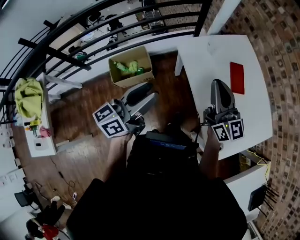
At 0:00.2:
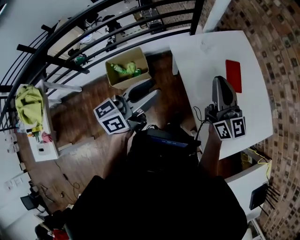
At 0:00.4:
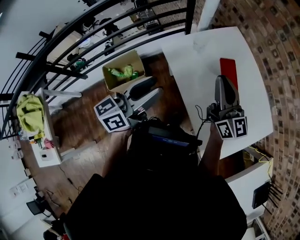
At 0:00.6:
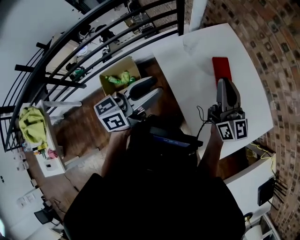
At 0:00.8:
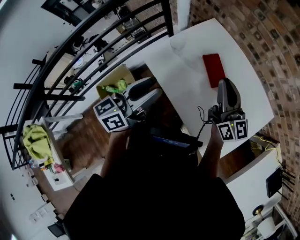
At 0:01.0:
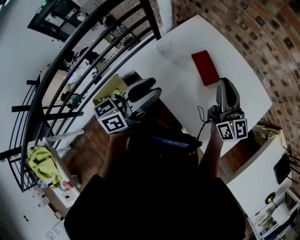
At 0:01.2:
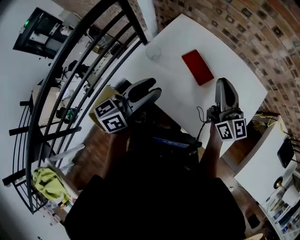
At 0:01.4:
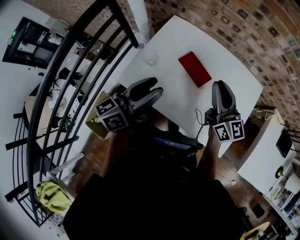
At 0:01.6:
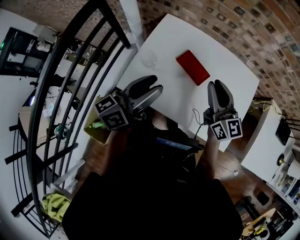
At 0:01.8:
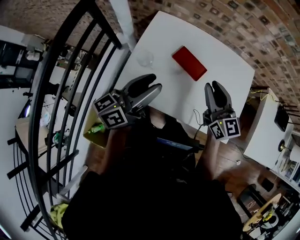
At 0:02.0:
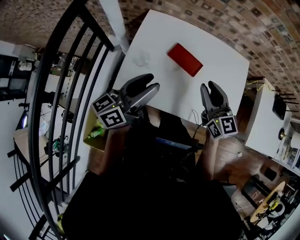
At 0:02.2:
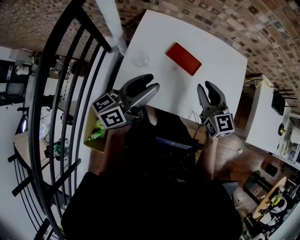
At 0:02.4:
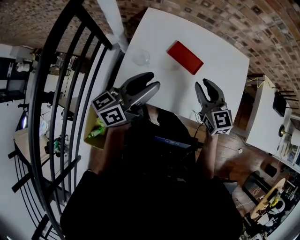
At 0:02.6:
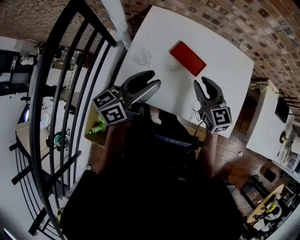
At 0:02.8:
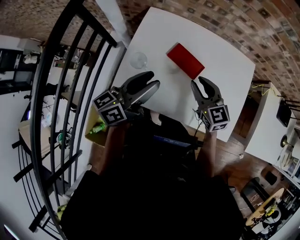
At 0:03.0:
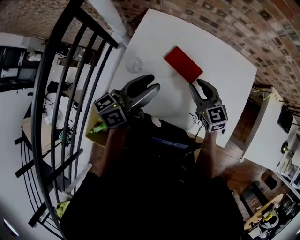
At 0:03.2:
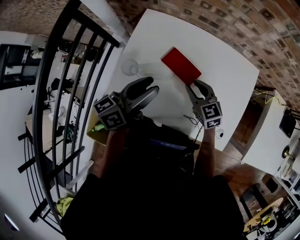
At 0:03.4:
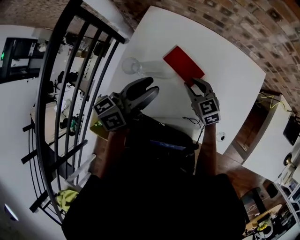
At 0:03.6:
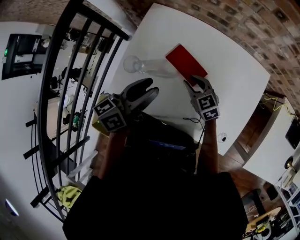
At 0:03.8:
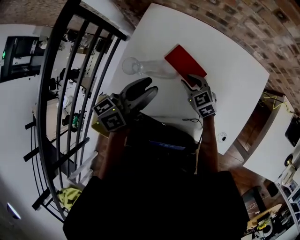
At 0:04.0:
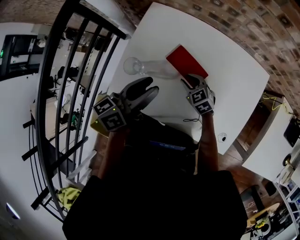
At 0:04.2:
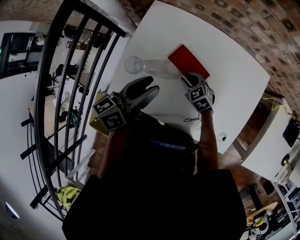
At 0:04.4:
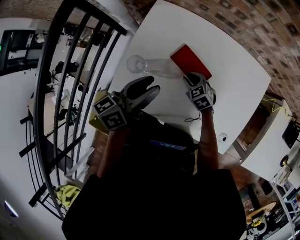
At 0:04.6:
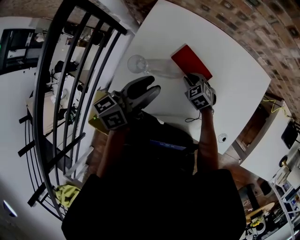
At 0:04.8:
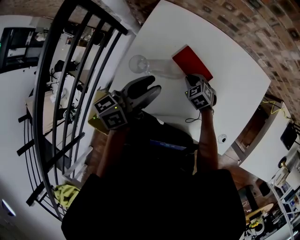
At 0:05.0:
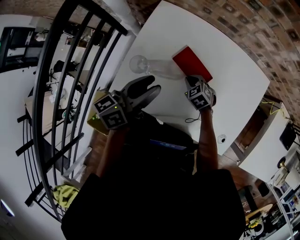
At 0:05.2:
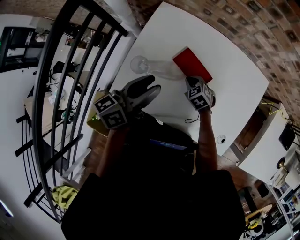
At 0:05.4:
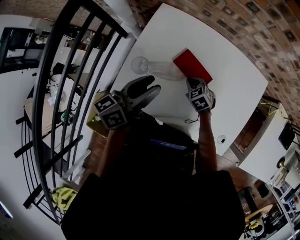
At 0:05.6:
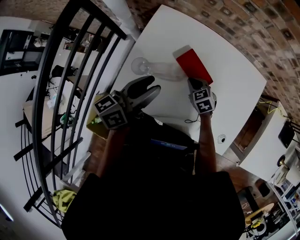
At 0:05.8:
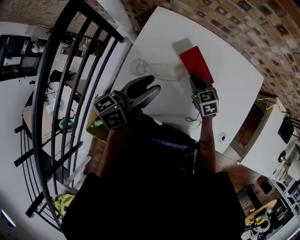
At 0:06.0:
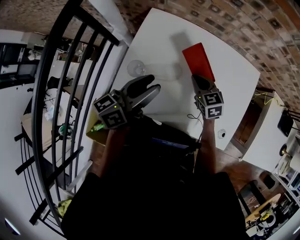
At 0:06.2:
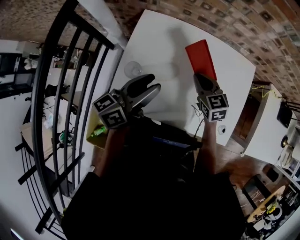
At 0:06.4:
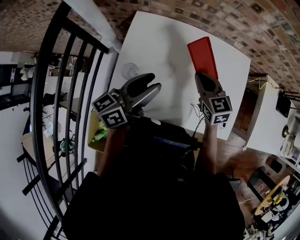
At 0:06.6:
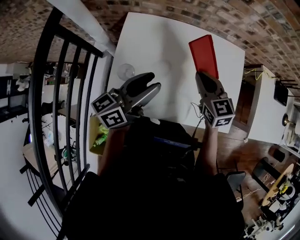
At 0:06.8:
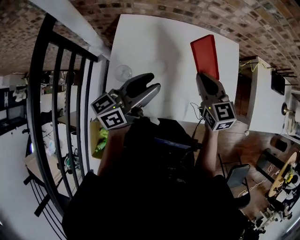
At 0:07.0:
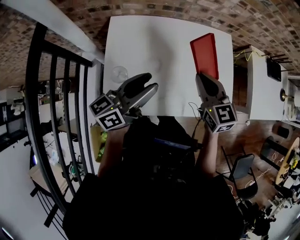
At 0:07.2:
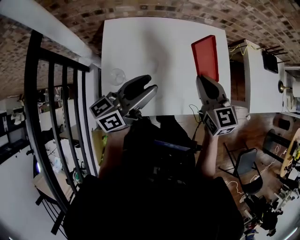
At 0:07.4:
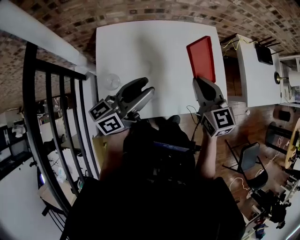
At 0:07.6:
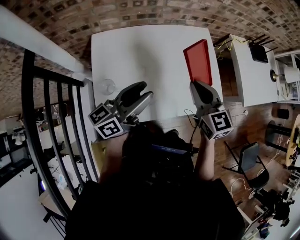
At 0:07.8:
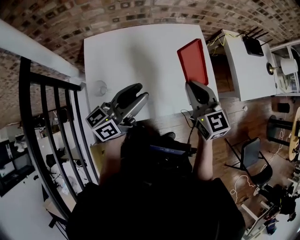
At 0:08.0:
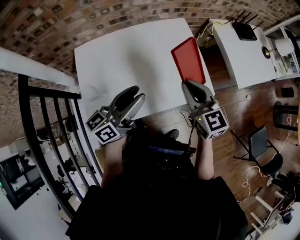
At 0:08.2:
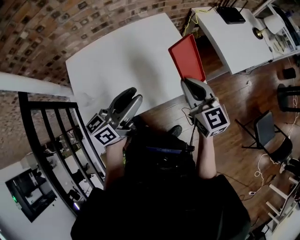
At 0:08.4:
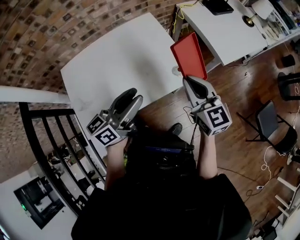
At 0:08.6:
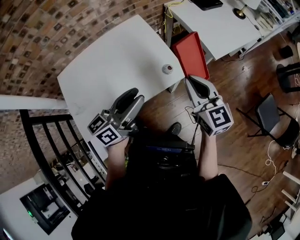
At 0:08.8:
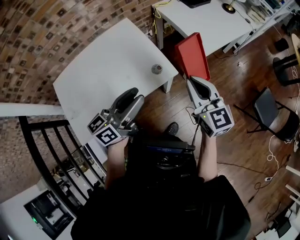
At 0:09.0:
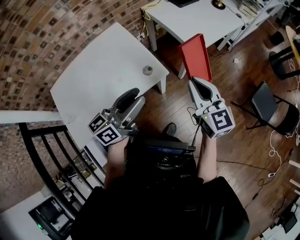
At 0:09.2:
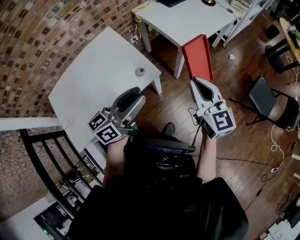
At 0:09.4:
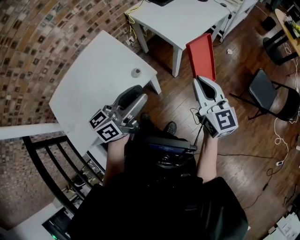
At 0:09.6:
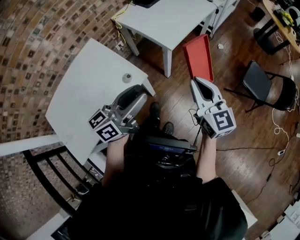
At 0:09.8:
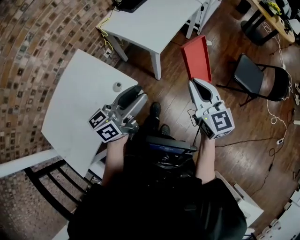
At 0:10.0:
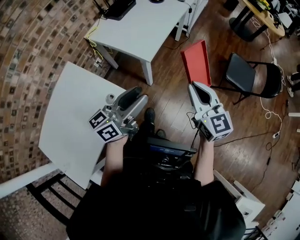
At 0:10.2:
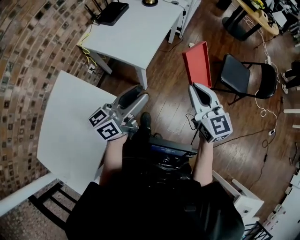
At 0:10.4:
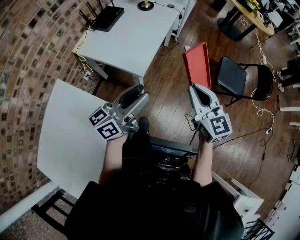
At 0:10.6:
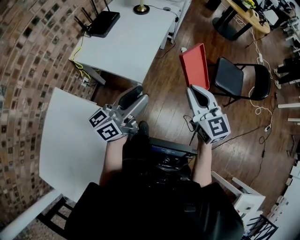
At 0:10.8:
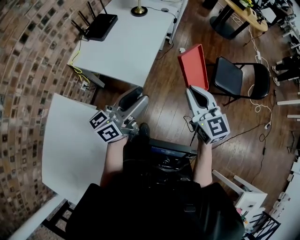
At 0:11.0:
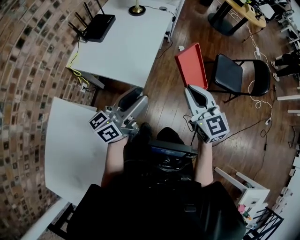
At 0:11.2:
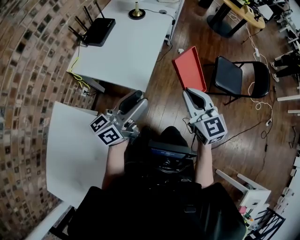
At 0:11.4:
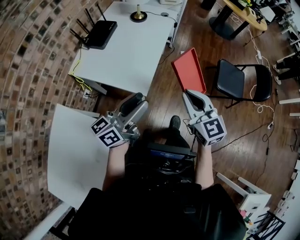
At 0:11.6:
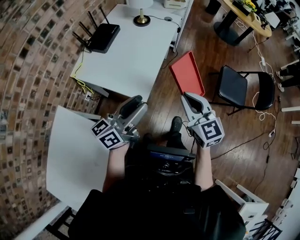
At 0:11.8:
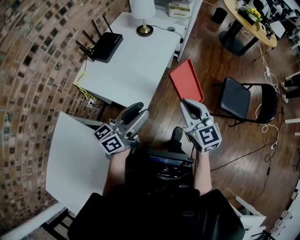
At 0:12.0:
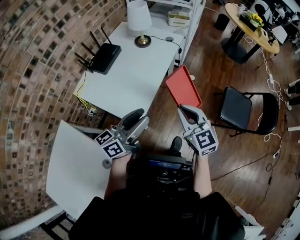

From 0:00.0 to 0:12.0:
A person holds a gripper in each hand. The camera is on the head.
From 0:00.0 to 0:01.6: The right gripper changes place by roughly 25 cm, and turns by roughly 40 degrees. Meanwhile the left gripper shifts by roughly 35 cm, and turns by approximately 50 degrees.
From 0:01.6 to 0:03.0: The left gripper moves forward and downward, approximately 10 cm. Meanwhile the right gripper goes some 15 cm downward, and swivels approximately 30 degrees.
From 0:03.0 to 0:04.4: The left gripper moves downward, some 5 cm. Meanwhile the right gripper is displaced downward by approximately 20 cm, and swivels some 30 degrees.
From 0:04.4 to 0:06.0: The right gripper heads upward, covering roughly 10 cm, swivels about 20 degrees, and closes its fingers.
From 0:06.0 to 0:07.6: The left gripper changes place by approximately 10 cm, and turns by some 30 degrees, while the right gripper moves upward, roughly 20 cm, and swivels approximately 40 degrees.
From 0:07.6 to 0:09.0: The pair of grippers is taken approximately 50 cm. The right gripper turns by roughly 30 degrees. The left gripper changes its angle by about 20 degrees.
From 0:09.0 to 0:10.4: The right gripper ends up about 25 cm from where it was, and changes its angle by about 30 degrees, while the left gripper shifts by roughly 35 cm, and turns by roughly 30 degrees.
From 0:10.4 to 0:12.0: Both grippers move forward, some 20 cm.

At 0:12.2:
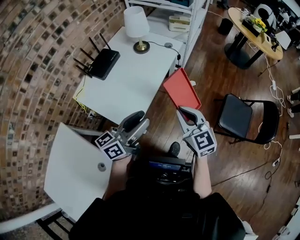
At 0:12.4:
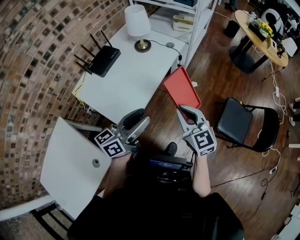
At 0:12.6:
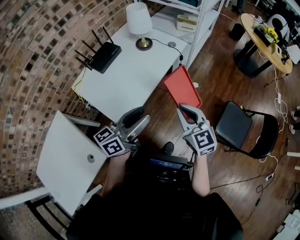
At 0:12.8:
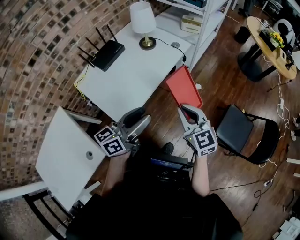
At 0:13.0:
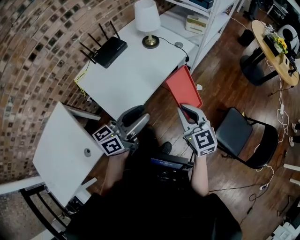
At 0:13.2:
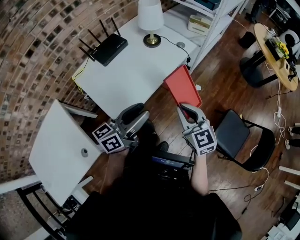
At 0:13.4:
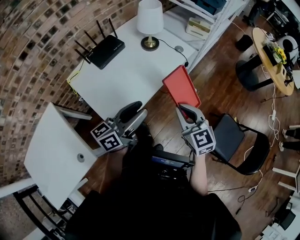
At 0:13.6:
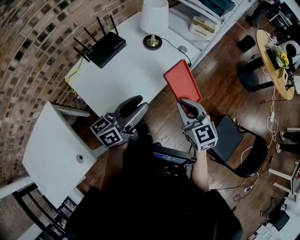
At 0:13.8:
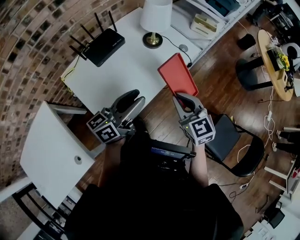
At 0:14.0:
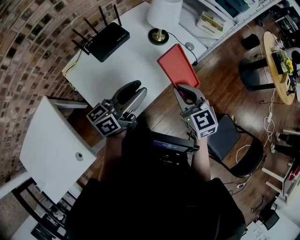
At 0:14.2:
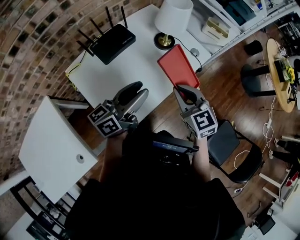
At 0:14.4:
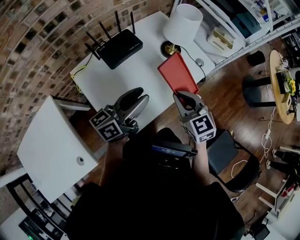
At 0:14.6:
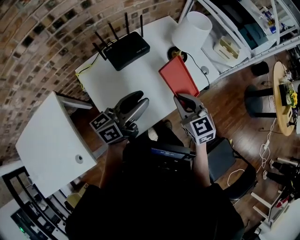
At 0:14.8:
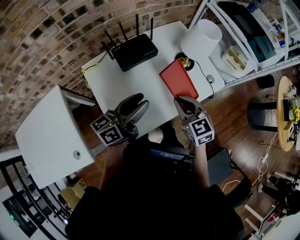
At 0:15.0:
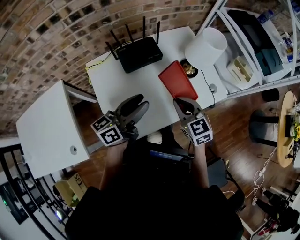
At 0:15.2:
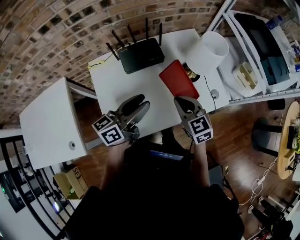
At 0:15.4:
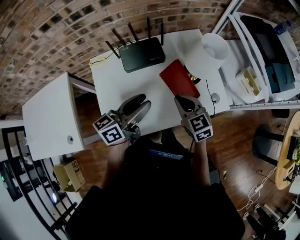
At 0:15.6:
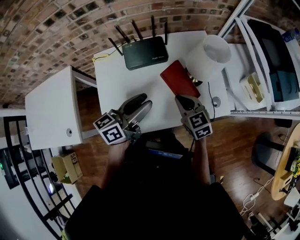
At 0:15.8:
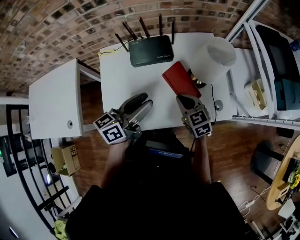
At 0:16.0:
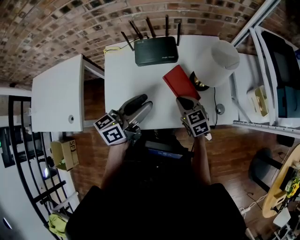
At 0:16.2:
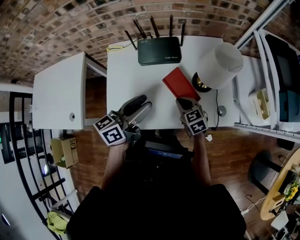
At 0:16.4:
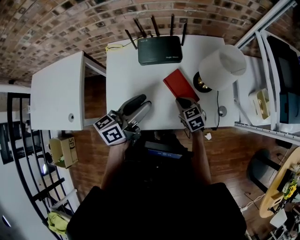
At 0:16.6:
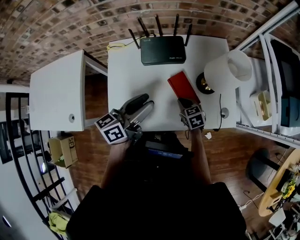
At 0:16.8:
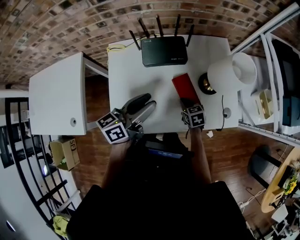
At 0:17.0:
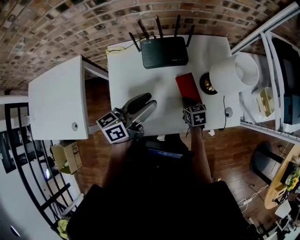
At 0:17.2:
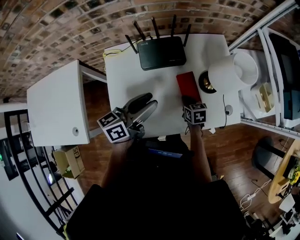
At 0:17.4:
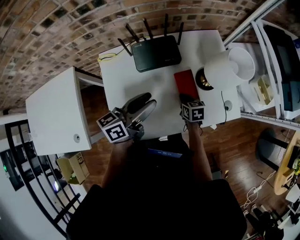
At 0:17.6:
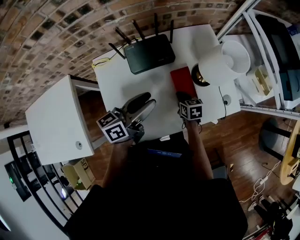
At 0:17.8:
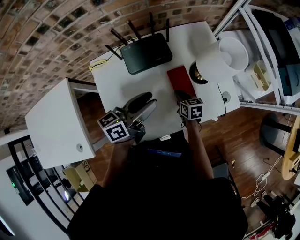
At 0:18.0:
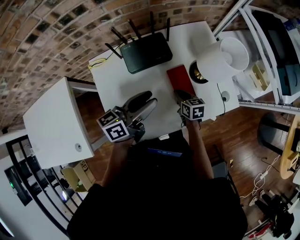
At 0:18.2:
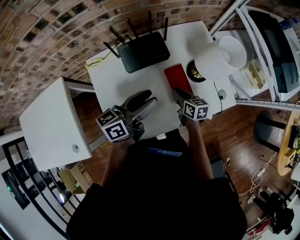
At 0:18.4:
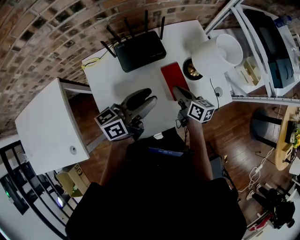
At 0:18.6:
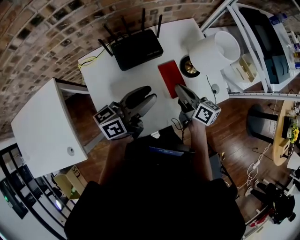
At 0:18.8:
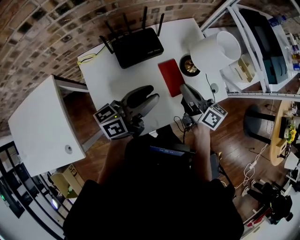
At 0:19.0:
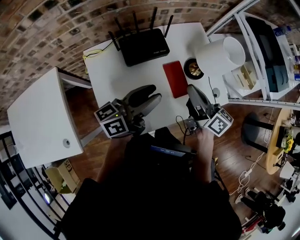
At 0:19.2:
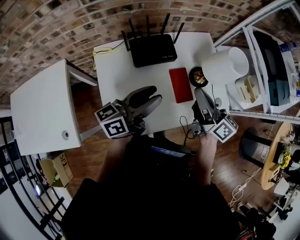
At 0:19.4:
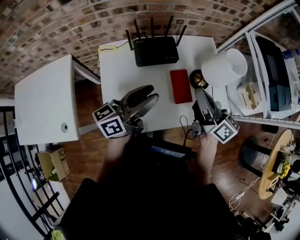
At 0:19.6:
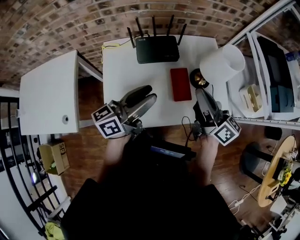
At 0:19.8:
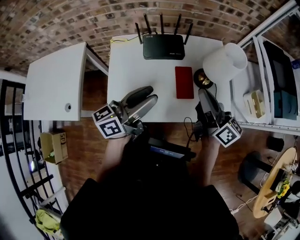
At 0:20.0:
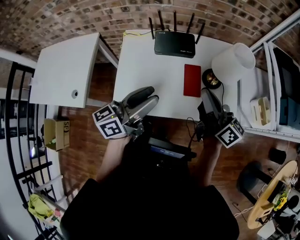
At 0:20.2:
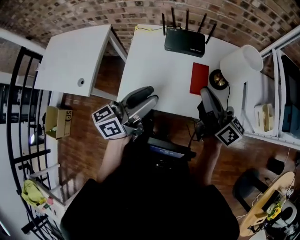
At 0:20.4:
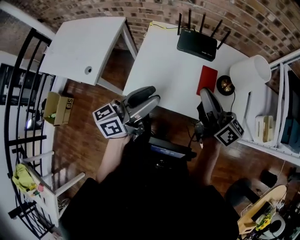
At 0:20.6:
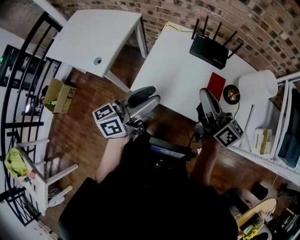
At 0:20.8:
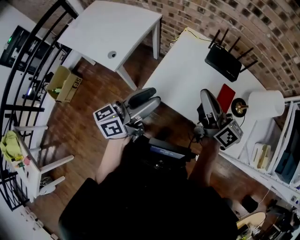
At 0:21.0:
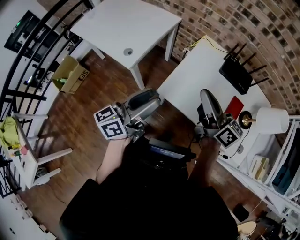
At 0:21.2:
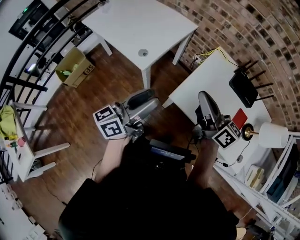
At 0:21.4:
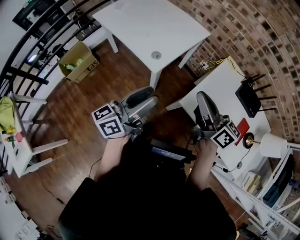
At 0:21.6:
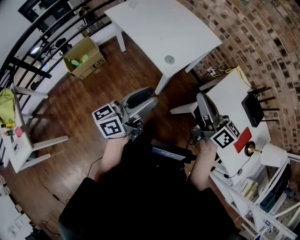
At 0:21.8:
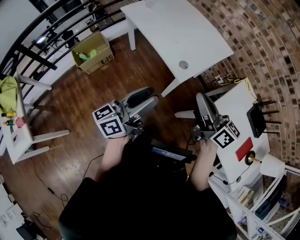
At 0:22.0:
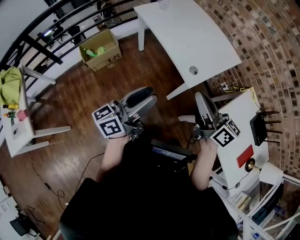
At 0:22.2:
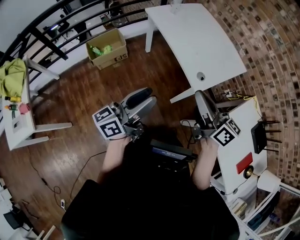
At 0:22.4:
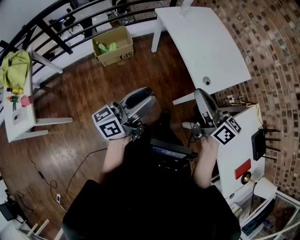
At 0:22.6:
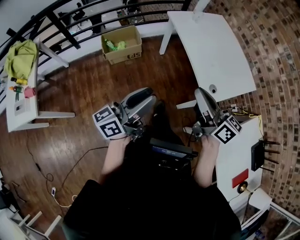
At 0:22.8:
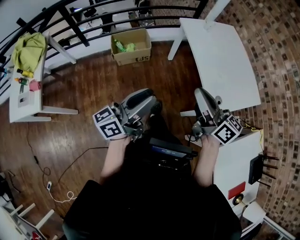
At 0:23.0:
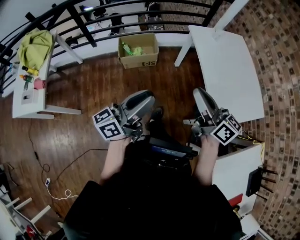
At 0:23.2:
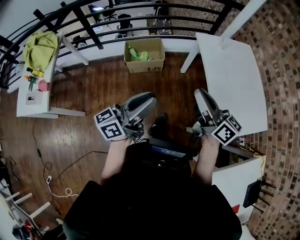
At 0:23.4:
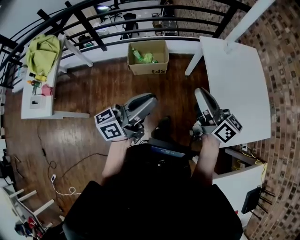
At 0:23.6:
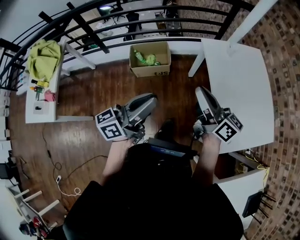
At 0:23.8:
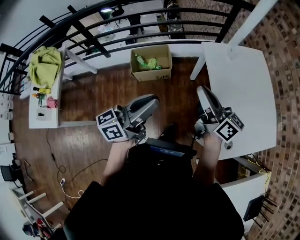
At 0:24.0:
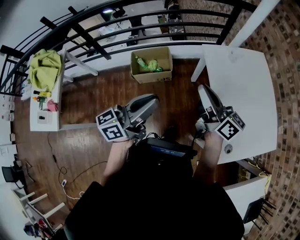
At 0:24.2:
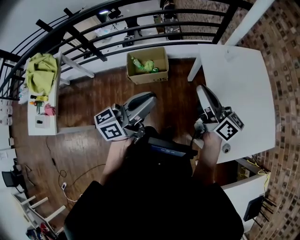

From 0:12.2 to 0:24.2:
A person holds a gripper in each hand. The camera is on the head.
From 0:12.2 to 0:13.8: Both grippers travel together forward, about 25 cm.
From 0:13.8 to 0:15.2: The right gripper shifts by some 25 cm, and rotates about 30 degrees; the left gripper moves roughly 15 cm, and changes its angle by some 30 degrees.
From 0:15.2 to 0:16.6: The right gripper is displaced downward by about 20 cm, and turns by roughly 30 degrees.
From 0:16.6 to 0:18.2: Both grippers move forward, roughly 5 cm. The right gripper swivels about 40 degrees.
From 0:18.2 to 0:19.8: The left gripper shifts approximately 15 cm backward and upward. The right gripper is displaced upward by some 30 cm, and tips its fingers upward by about 40 degrees.
From 0:19.8 to 0:21.2: The two grippers travel together, some 50 cm. The right gripper turns by some 40 degrees; the left gripper swivels some 40 degrees.
From 0:21.2 to 0:22.6: Both grippers are carried some 50 cm. The left gripper turns by some 30 degrees. Meanwhile the right gripper turns by approximately 30 degrees.
From 0:22.6 to 0:24.2: Both grippers move forward, some 35 cm. The left gripper closes.
